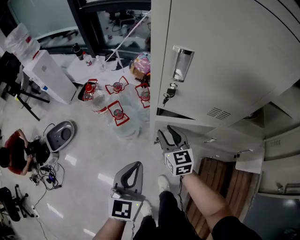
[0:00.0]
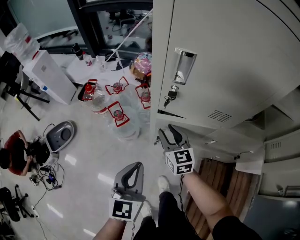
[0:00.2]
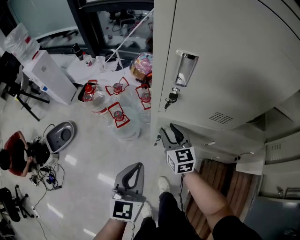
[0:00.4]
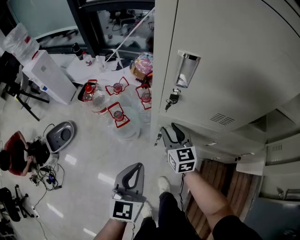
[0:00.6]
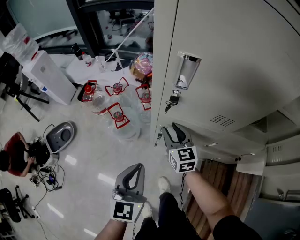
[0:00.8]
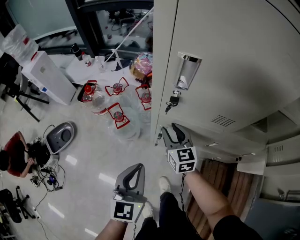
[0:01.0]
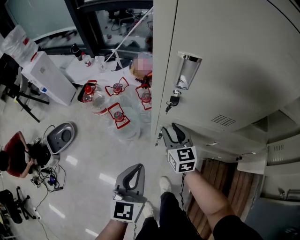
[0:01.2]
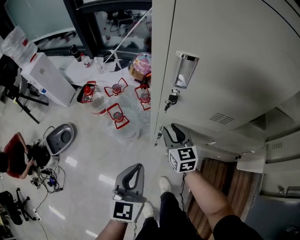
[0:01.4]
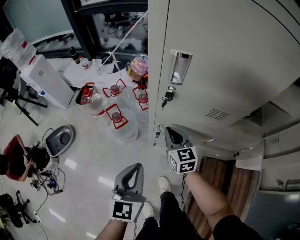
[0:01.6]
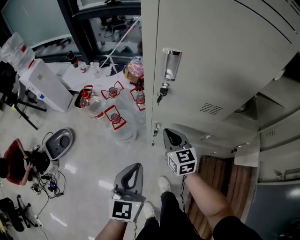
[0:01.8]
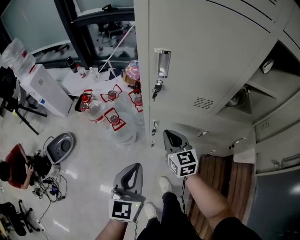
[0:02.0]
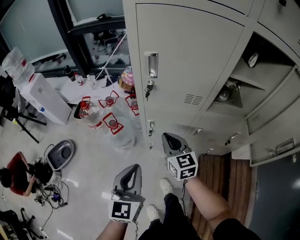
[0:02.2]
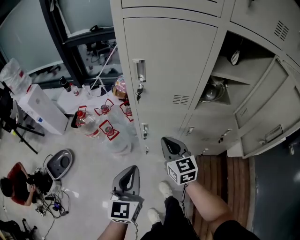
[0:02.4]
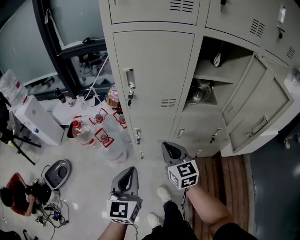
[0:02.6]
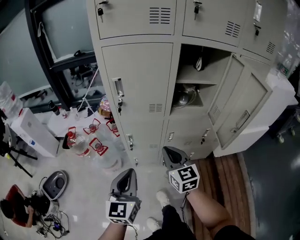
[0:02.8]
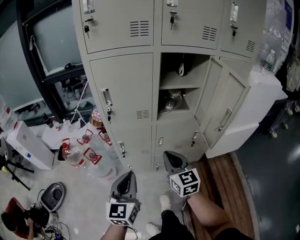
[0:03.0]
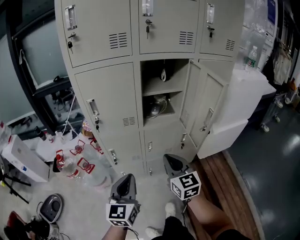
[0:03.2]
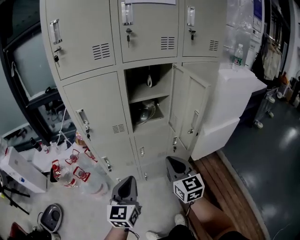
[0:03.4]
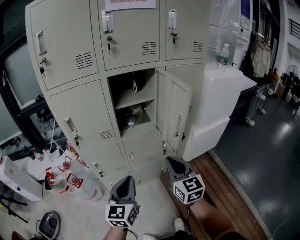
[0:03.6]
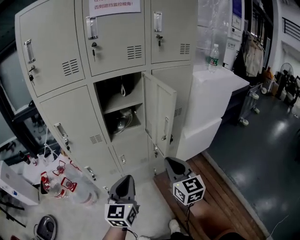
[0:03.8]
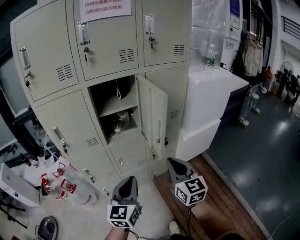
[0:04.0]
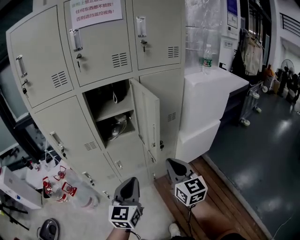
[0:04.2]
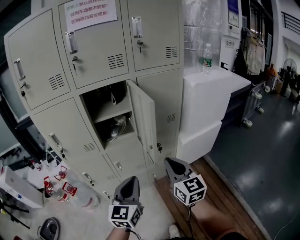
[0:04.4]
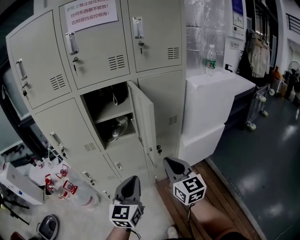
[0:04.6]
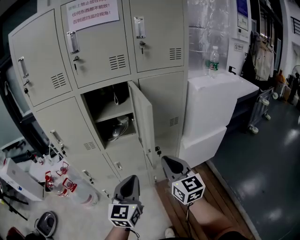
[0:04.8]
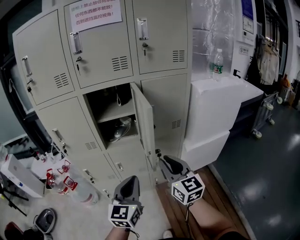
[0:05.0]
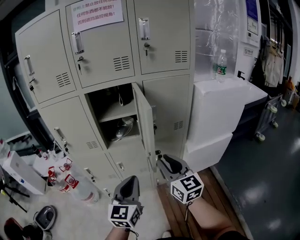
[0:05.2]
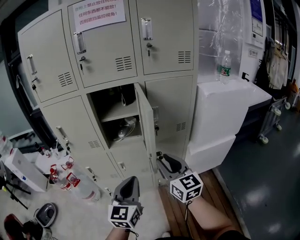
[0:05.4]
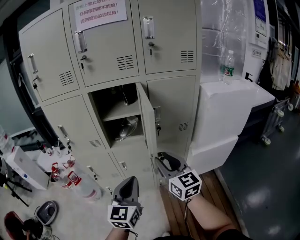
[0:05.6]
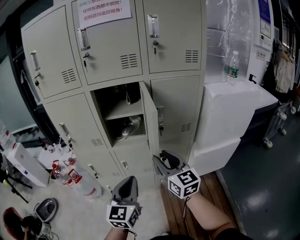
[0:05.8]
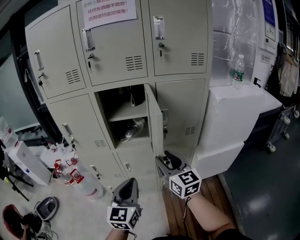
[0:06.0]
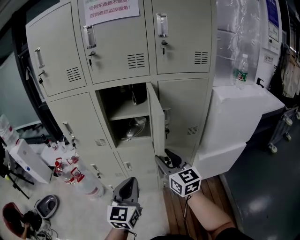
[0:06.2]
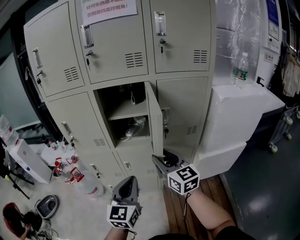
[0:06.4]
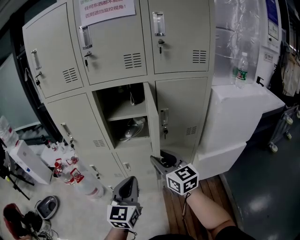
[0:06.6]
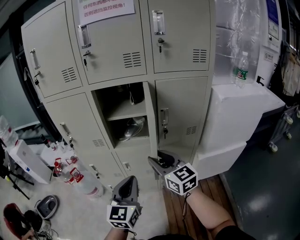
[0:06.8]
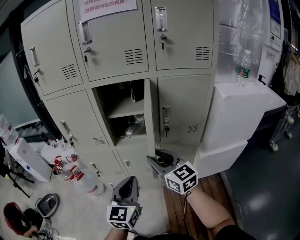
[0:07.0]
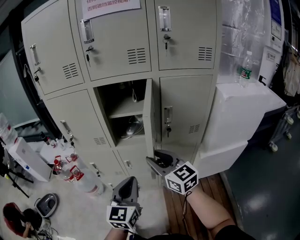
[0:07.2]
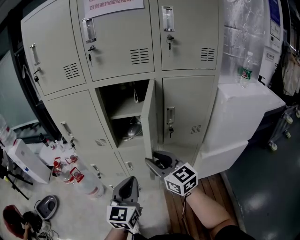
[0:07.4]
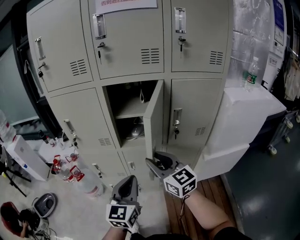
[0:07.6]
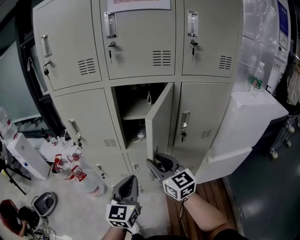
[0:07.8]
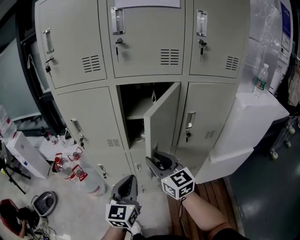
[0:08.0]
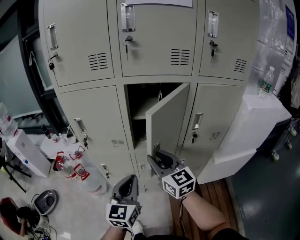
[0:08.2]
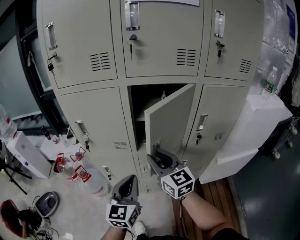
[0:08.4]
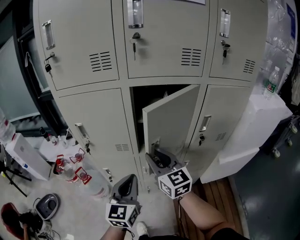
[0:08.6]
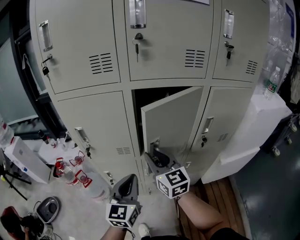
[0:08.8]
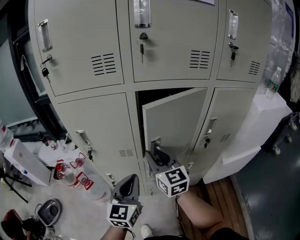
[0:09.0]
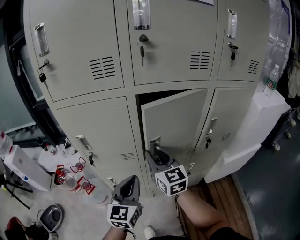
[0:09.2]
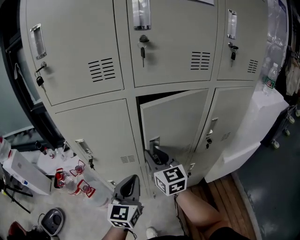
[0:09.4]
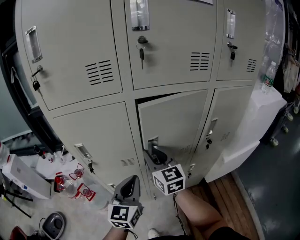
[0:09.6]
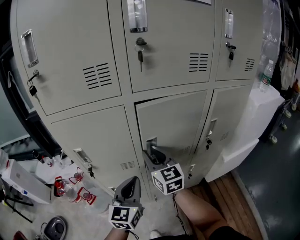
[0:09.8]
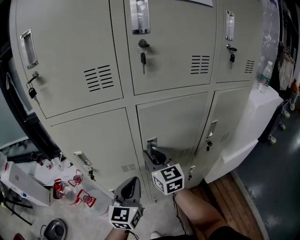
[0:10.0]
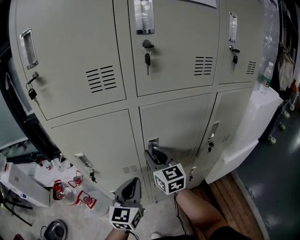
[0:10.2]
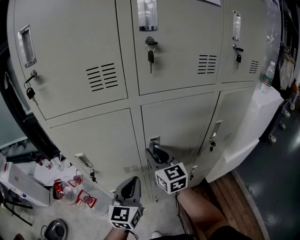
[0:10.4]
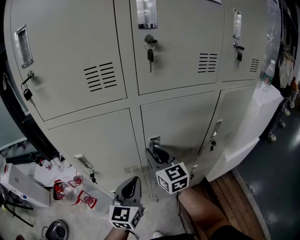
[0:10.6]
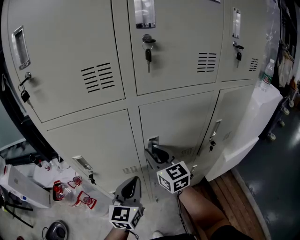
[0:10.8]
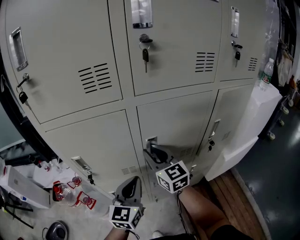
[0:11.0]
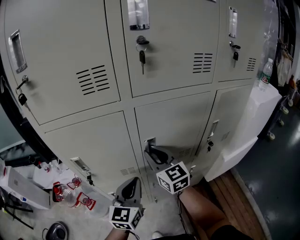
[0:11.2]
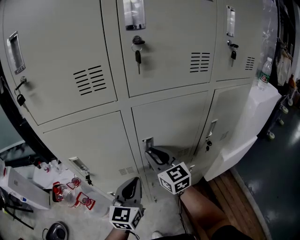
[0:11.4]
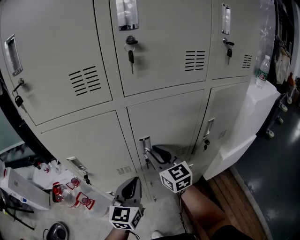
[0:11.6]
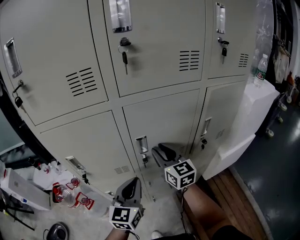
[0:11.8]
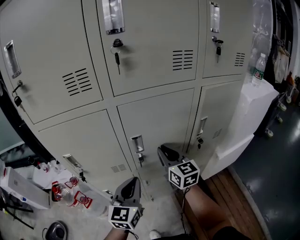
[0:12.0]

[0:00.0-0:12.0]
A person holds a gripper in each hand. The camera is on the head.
0:00.0 to 0:01.6: The right gripper closes.
0:01.6 to 0:03.0: The left gripper heads backward, upward and to the right, covering some 25 cm, and changes its angle by some 20 degrees. Meanwhile the right gripper is displaced backward, upward and to the right by some 35 cm, and turns by about 20 degrees.
0:03.0 to 0:04.4: The grippers both shift to the right by about 30 cm.
0:04.4 to 0:06.0: The right gripper shifts approximately 10 cm forward, and opens its fingers.
0:06.0 to 0:07.6: The right gripper heads to the left, covering some 10 cm; the left gripper moves about 5 cm.
0:07.6 to 0:09.0: Both grippers travel together forward and to the left, approximately 20 cm.
0:09.0 to 0:10.4: The grippers both shift forward by roughly 10 cm.
0:10.4 to 0:12.0: The right gripper is displaced to the right by approximately 10 cm; the left gripper goes some 5 cm to the right.

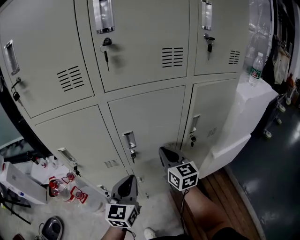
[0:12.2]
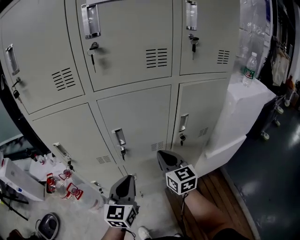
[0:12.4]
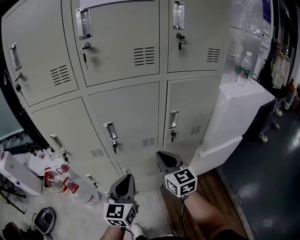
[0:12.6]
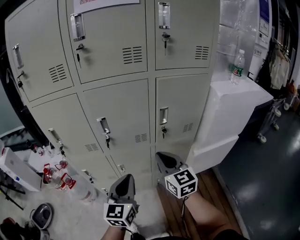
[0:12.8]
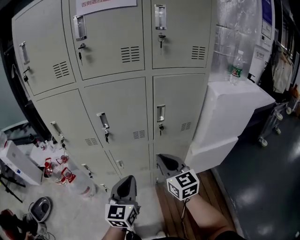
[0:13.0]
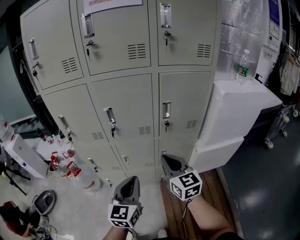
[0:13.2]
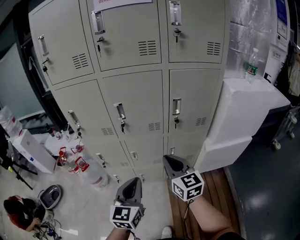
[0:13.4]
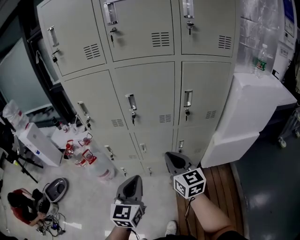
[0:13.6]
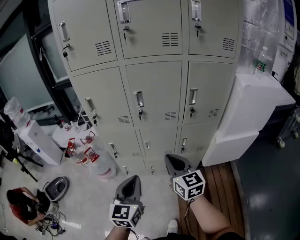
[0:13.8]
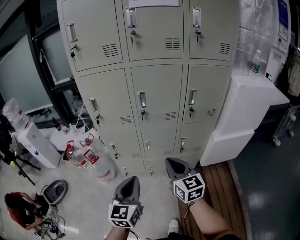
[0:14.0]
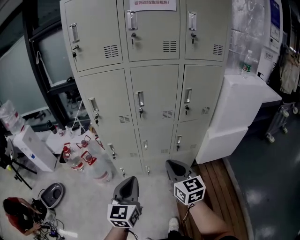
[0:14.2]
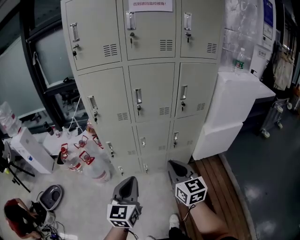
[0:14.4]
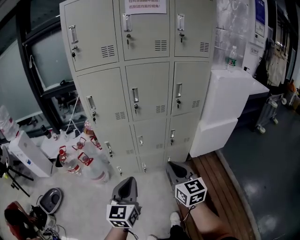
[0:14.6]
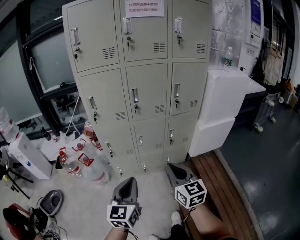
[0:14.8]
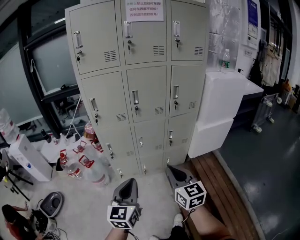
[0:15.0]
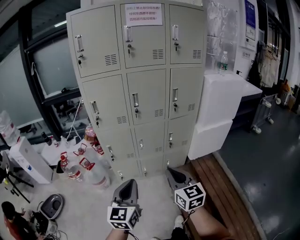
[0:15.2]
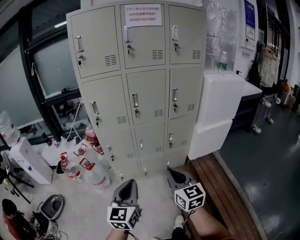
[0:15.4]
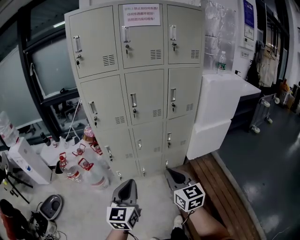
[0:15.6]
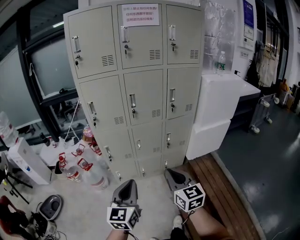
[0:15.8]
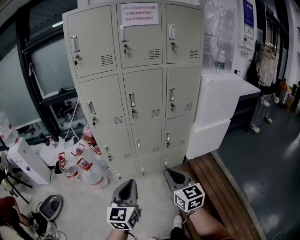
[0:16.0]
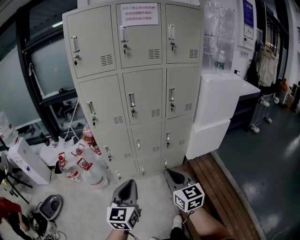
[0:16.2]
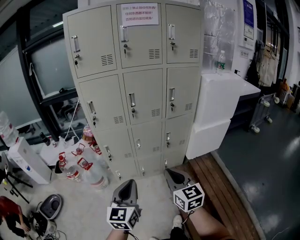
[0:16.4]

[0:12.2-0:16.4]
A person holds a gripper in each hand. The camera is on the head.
0:12.2 to 0:13.6: The two grippers go about 25 cm backward.
0:13.6 to 0:15.0: Both grippers travel together backward and to the left, approximately 25 cm.
0:15.0 to 0:16.4: The grippers move only a little.

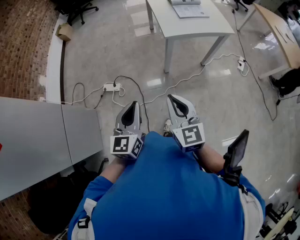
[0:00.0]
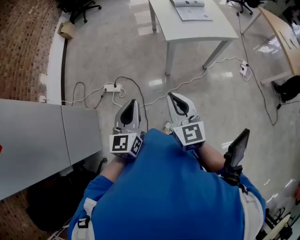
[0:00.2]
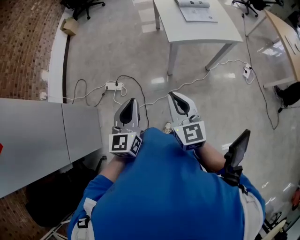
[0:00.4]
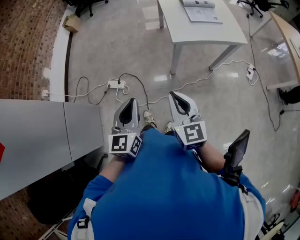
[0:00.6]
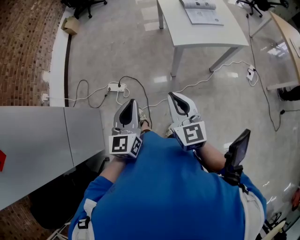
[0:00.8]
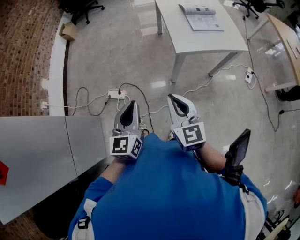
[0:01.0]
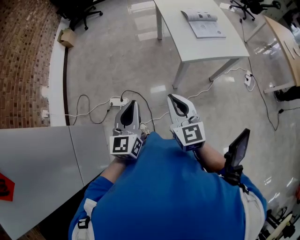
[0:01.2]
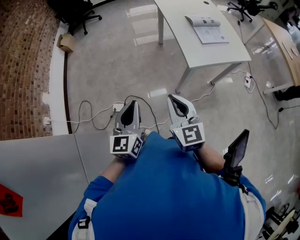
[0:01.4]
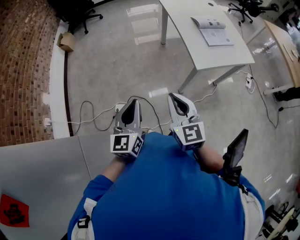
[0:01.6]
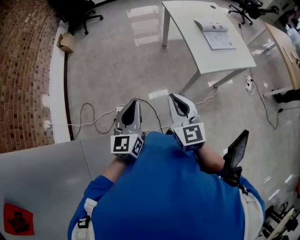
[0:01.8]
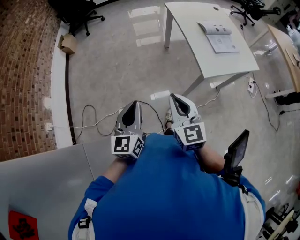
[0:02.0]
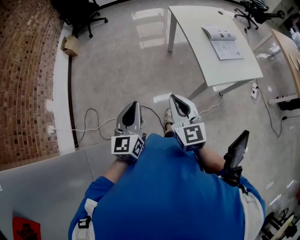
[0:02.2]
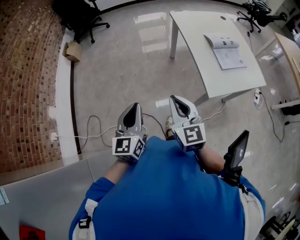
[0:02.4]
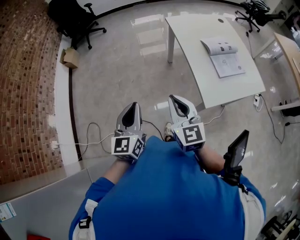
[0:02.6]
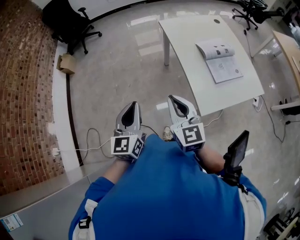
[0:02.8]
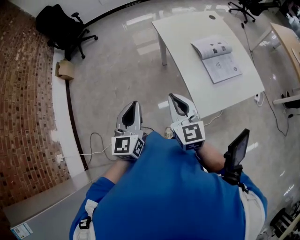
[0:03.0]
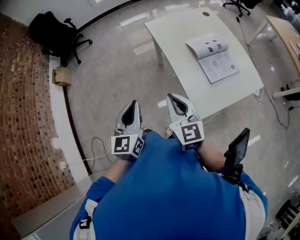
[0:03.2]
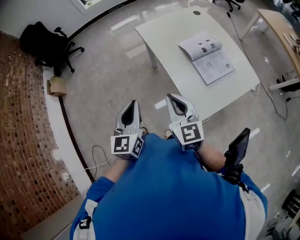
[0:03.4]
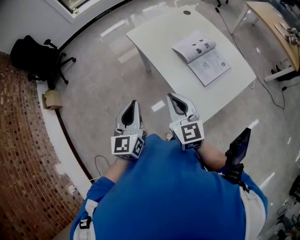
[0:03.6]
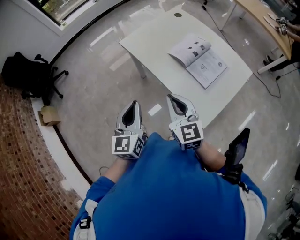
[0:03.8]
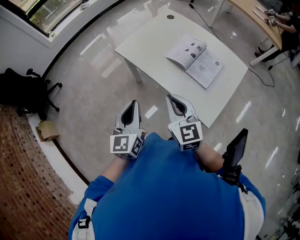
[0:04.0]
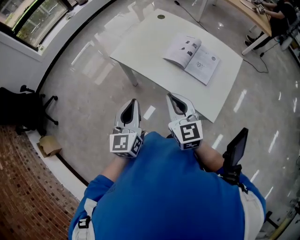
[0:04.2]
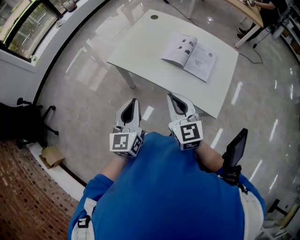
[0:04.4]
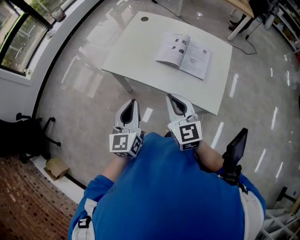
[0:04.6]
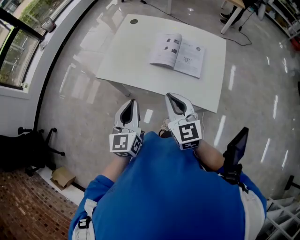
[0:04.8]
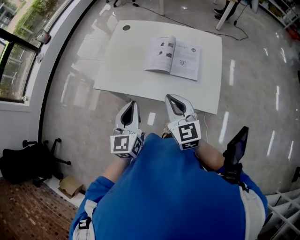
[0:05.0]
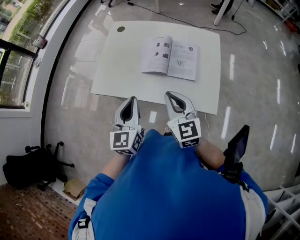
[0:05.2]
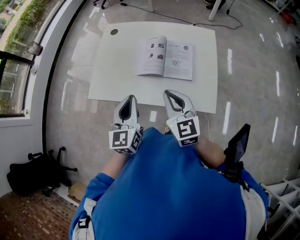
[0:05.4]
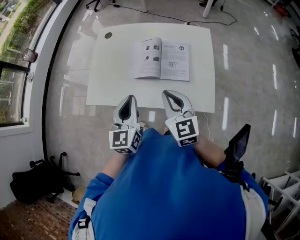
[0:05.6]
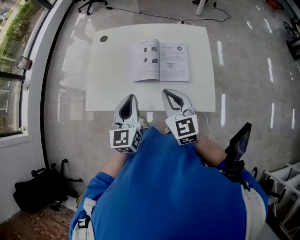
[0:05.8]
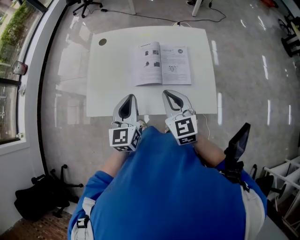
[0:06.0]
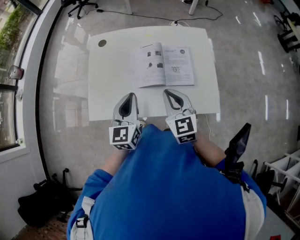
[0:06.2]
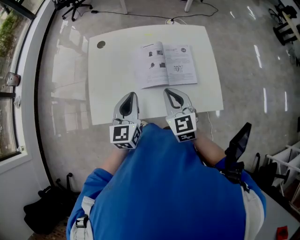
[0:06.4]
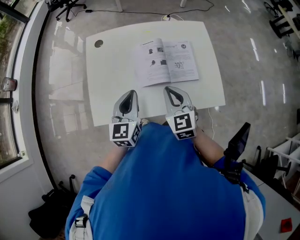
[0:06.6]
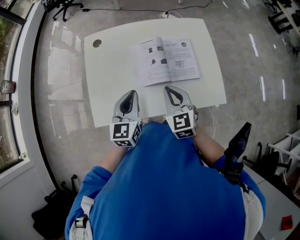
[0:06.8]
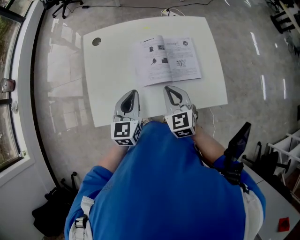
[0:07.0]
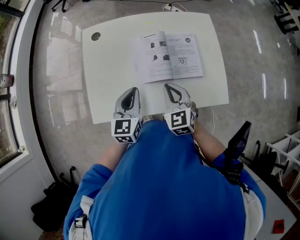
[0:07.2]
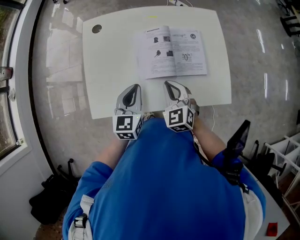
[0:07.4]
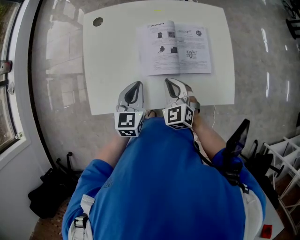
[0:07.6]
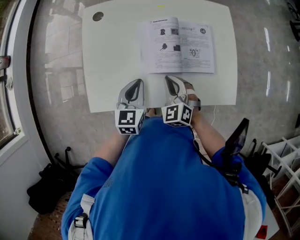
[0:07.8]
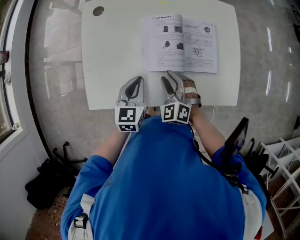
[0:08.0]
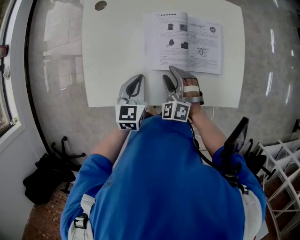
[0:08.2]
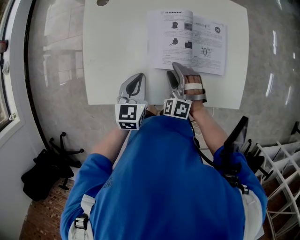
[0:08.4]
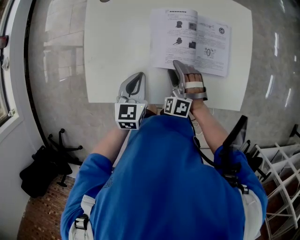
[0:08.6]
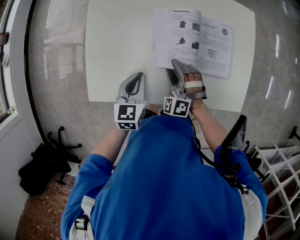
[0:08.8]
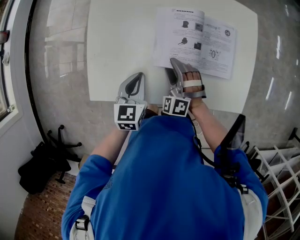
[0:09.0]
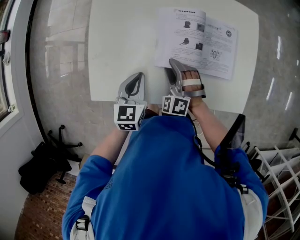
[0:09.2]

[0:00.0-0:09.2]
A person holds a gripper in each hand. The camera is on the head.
0:00.0 to 0:01.6: Both grippers travel together forward and to the left, approximately 30 cm.
0:01.6 to 0:03.0: Both grippers travel together forward, approximately 35 cm.
0:03.0 to 0:04.6: The right gripper changes place by roughly 25 cm, and swivels about 50 degrees; the left gripper changes place by about 35 cm, and turns by about 50 degrees.
0:04.6 to 0:06.2: Both grippers move forward, about 20 cm. The right gripper changes its angle by some 20 degrees; the left gripper changes its angle by approximately 30 degrees.
0:06.2 to 0:07.6: The right gripper goes approximately 15 cm downward, and changes its angle by about 20 degrees, while the left gripper is displaced downward and forward by about 15 cm.
0:07.6 to 0:09.2: The right gripper moves to the left and downward, about 10 cm, swivels about 40 degrees, and opens its fingers; the left gripper shifts about 5 cm to the left.
